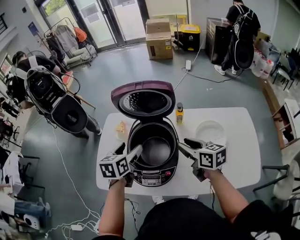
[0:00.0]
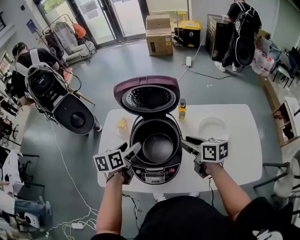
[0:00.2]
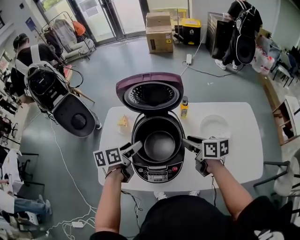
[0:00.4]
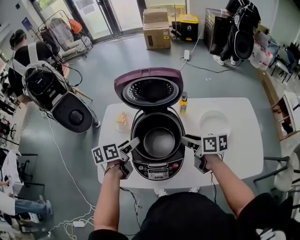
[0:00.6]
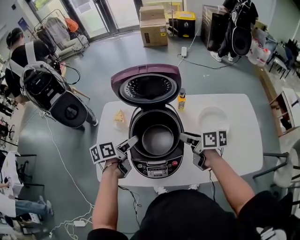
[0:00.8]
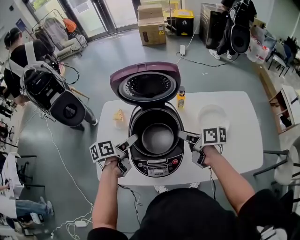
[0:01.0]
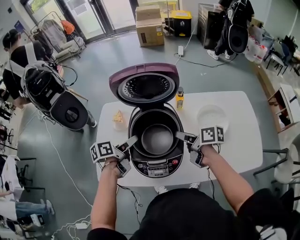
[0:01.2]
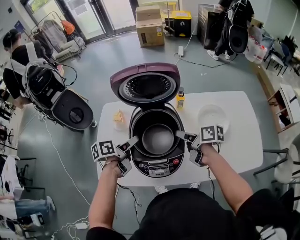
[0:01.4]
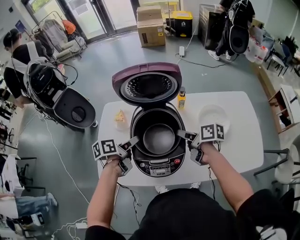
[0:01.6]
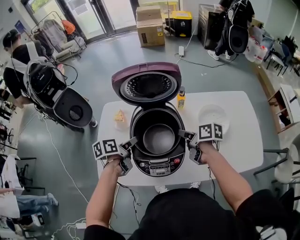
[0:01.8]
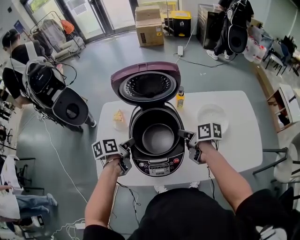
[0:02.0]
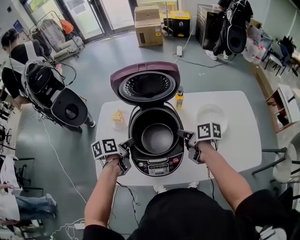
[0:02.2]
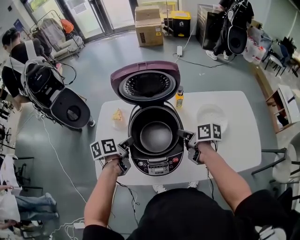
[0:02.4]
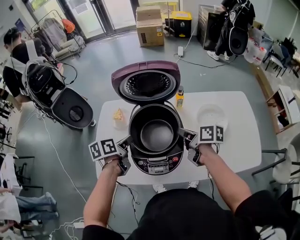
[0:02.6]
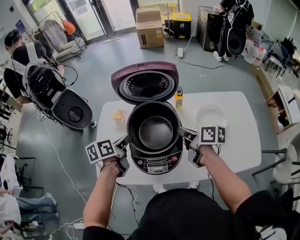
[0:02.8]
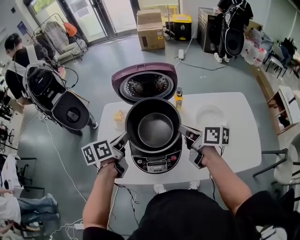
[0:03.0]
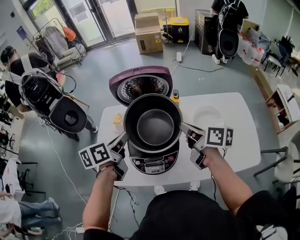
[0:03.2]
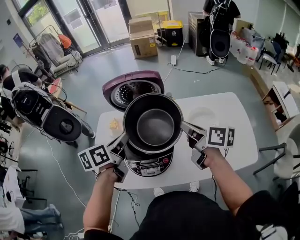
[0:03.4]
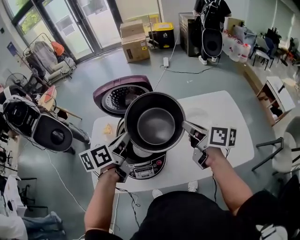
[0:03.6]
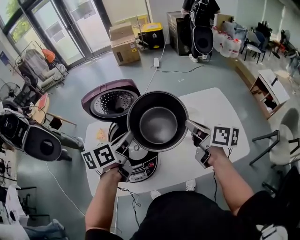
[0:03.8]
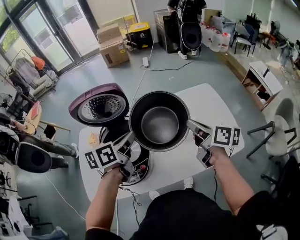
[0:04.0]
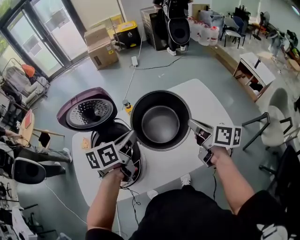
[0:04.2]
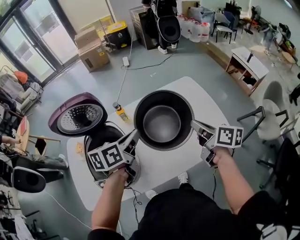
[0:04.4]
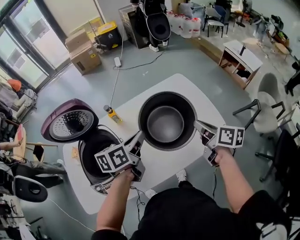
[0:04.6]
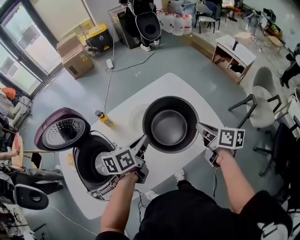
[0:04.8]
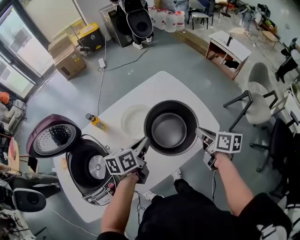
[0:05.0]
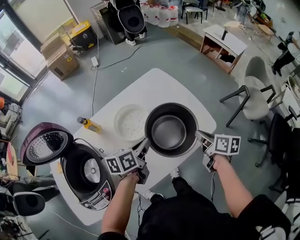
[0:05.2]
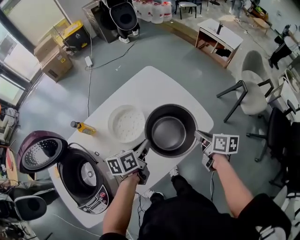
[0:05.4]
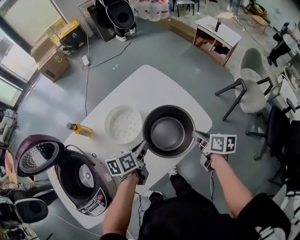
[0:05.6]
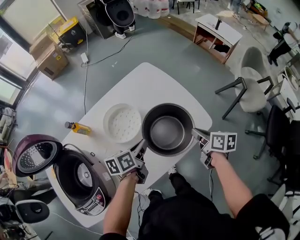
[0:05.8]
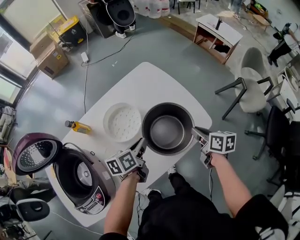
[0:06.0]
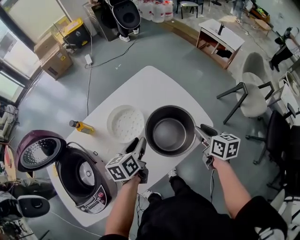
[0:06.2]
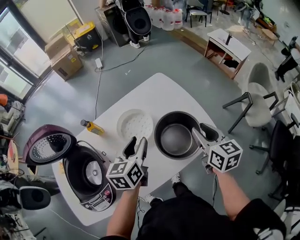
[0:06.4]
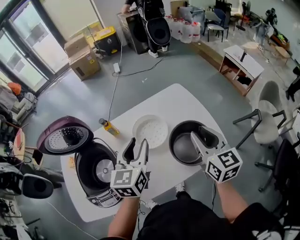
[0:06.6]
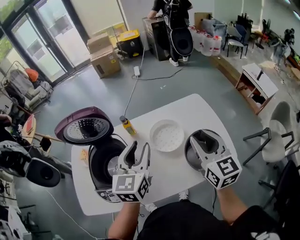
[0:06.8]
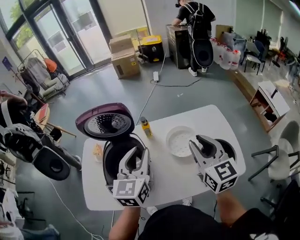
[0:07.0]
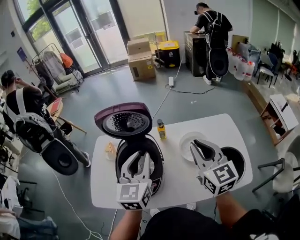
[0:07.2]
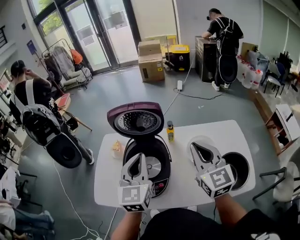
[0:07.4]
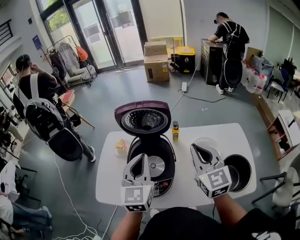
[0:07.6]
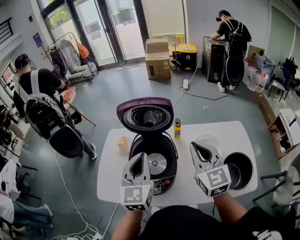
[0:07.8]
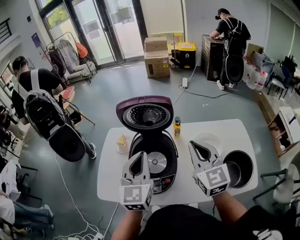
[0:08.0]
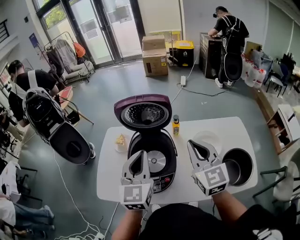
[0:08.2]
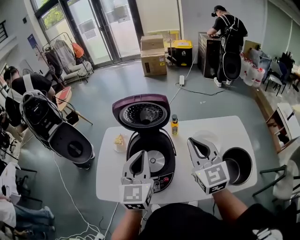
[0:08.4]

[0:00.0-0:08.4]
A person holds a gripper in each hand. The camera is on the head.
0:00.0 to 0:01.4: The two grippers go about 10 cm downward. The right gripper rotates approximately 30 degrees. Meanwhile the left gripper turns by about 40 degrees.
0:01.4 to 0:02.8: The left gripper closes.
0:02.8 to 0:04.2: The grippers both shift to the right by approximately 25 cm. The left gripper turns by about 30 degrees. The right gripper swivels some 30 degrees.
0:04.2 to 0:05.6: The grippers both shift to the right and downward by about 30 cm. The left gripper changes its angle by roughly 20 degrees. Meanwhile the right gripper swivels roughly 30 degrees.
0:05.6 to 0:07.0: Both grippers travel together upward, about 25 cm. The right gripper rotates around the line of its fingers by roughly 60 degrees, counterclockwise from behind, while the left gripper changes its angle by some 60 degrees.
0:07.0 to 0:08.4: Both grippers move to the left, roughly 15 cm.

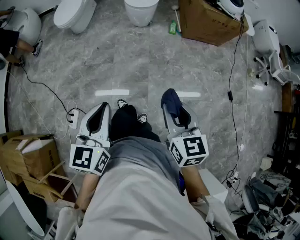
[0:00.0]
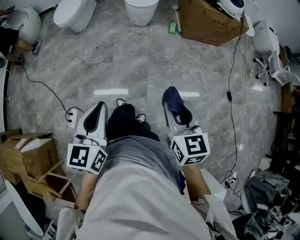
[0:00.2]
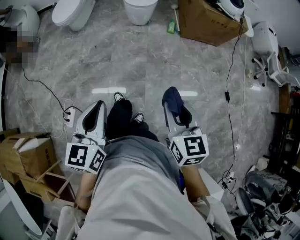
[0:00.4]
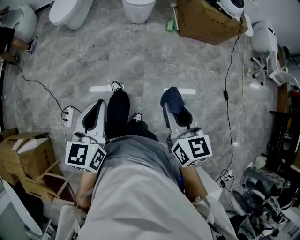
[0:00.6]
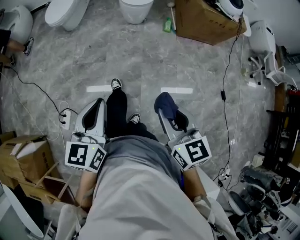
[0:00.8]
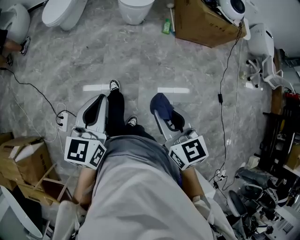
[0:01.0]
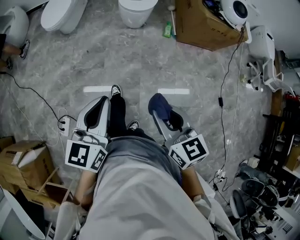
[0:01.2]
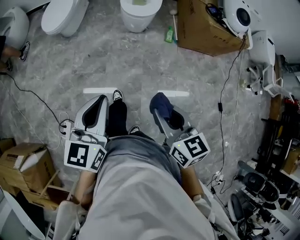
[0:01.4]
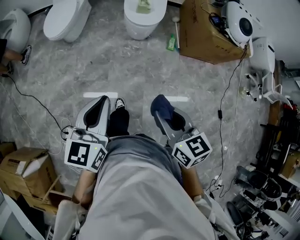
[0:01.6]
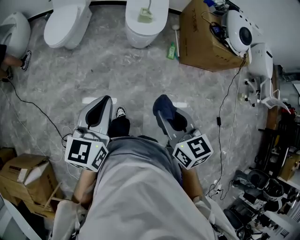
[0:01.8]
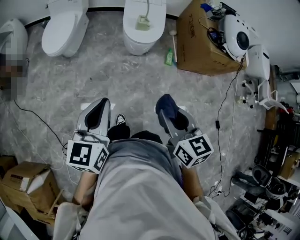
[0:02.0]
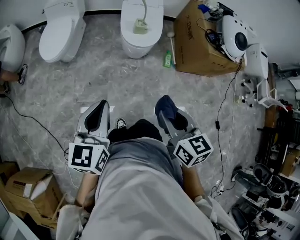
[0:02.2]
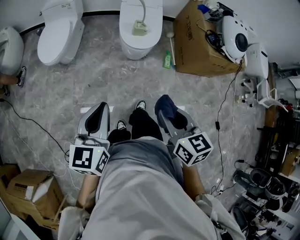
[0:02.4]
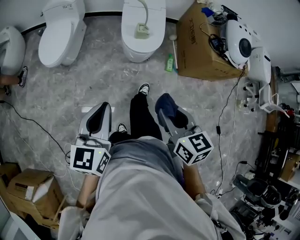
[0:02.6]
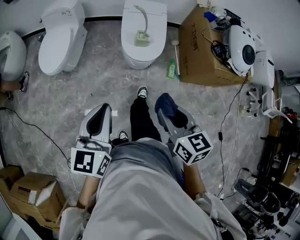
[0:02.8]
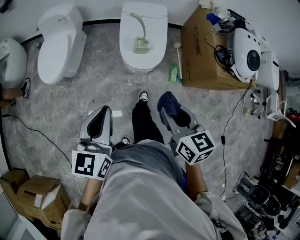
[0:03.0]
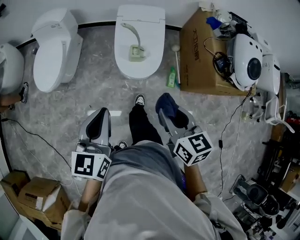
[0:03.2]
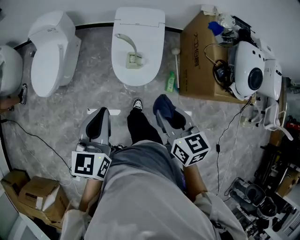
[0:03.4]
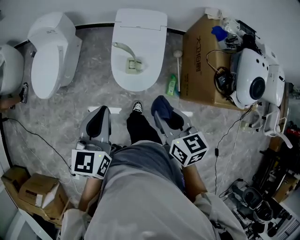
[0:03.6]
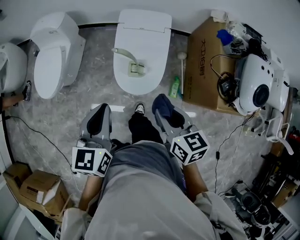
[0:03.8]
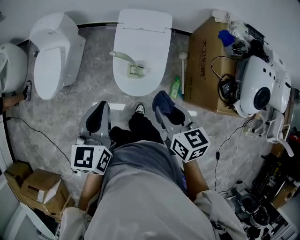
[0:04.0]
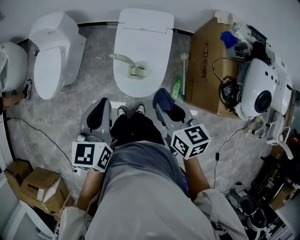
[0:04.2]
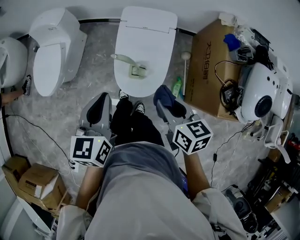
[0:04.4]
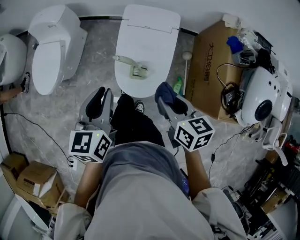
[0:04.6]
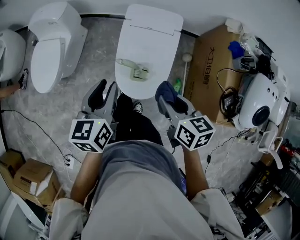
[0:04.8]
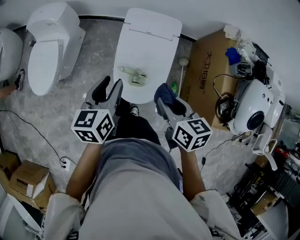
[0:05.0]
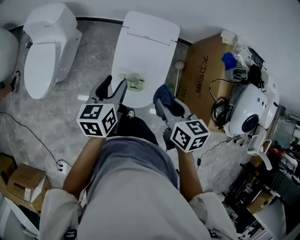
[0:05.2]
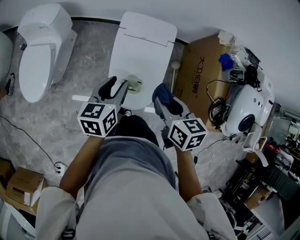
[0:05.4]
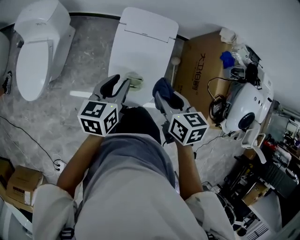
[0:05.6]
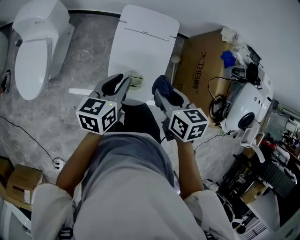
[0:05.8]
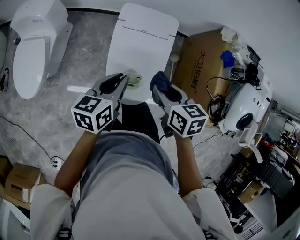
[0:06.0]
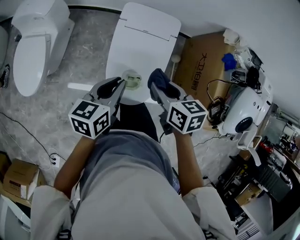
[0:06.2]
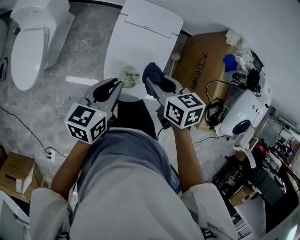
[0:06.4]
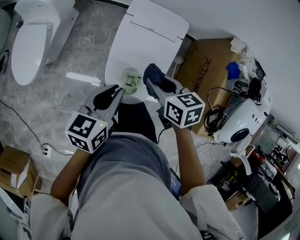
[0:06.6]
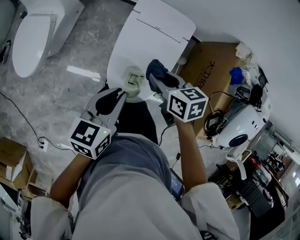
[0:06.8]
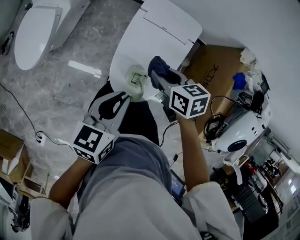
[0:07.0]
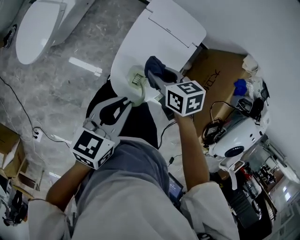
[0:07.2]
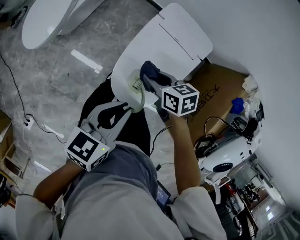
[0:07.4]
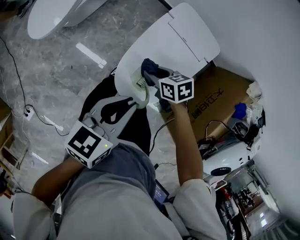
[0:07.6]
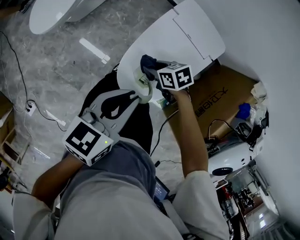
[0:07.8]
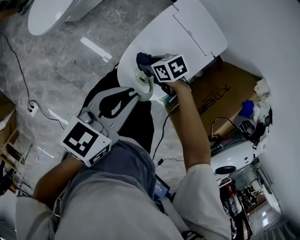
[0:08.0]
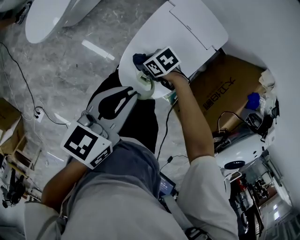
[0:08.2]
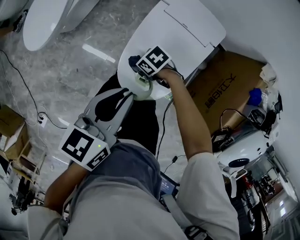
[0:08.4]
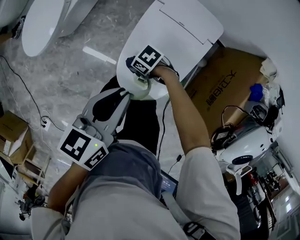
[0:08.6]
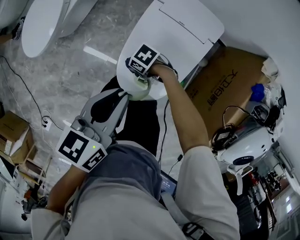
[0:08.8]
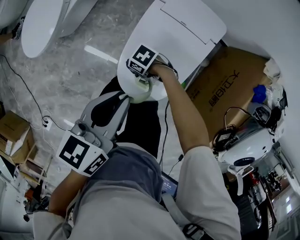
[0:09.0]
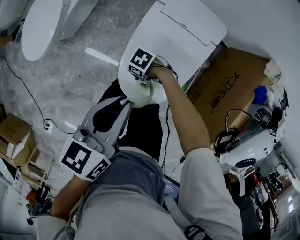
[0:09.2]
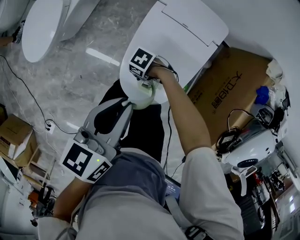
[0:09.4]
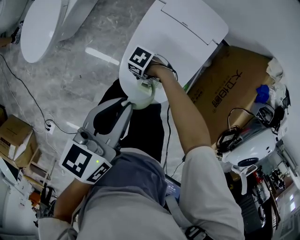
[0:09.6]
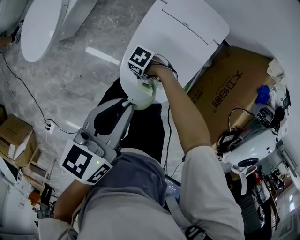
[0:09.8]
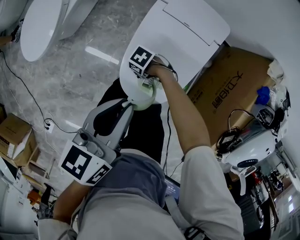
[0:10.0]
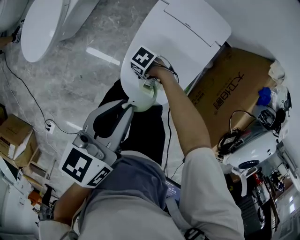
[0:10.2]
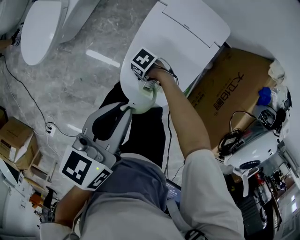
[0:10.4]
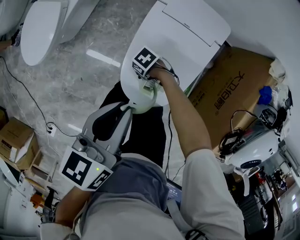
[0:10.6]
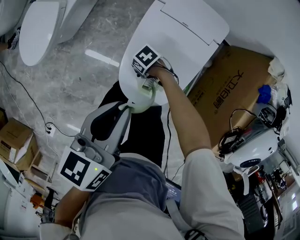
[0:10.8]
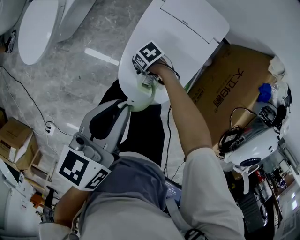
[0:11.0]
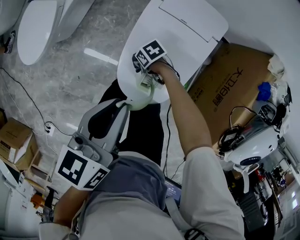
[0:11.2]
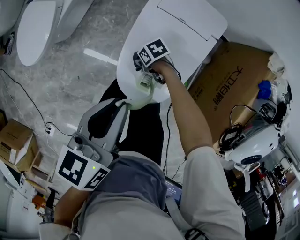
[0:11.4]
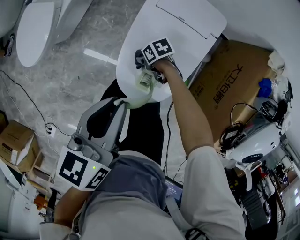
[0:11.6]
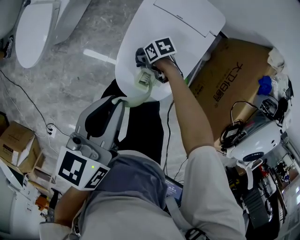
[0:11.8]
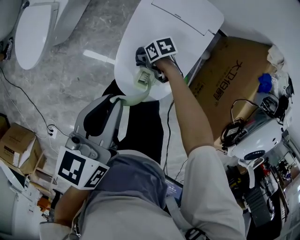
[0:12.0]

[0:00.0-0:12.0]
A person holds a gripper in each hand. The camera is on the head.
0:00.0 to 0:01.6: The left gripper ends up roughly 35 cm from where it was.
0:01.6 to 0:03.0: The left gripper shifts by about 35 cm.
0:03.0 to 0:04.4: The left gripper changes place by about 35 cm.
0:04.4 to 0:06.0: The left gripper changes place by some 20 cm, and rotates roughly 30 degrees.
0:06.0 to 0:07.6: The left gripper ends up some 5 cm from where it was.

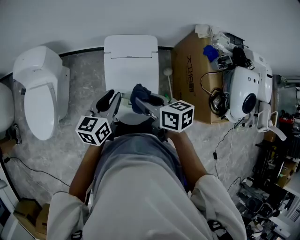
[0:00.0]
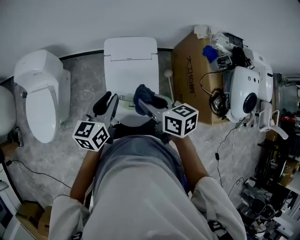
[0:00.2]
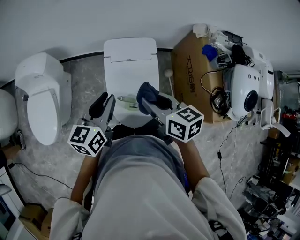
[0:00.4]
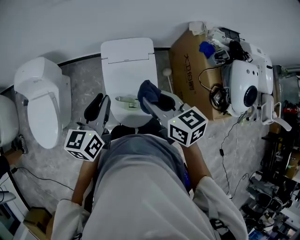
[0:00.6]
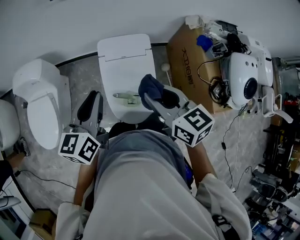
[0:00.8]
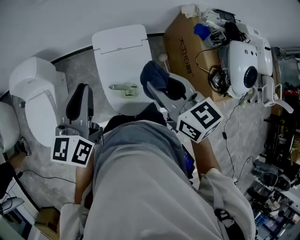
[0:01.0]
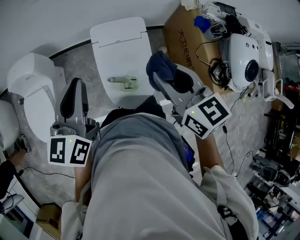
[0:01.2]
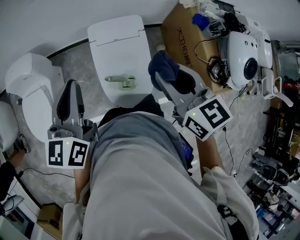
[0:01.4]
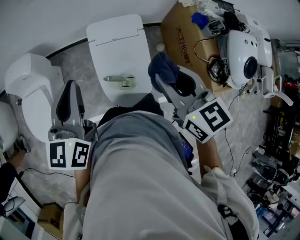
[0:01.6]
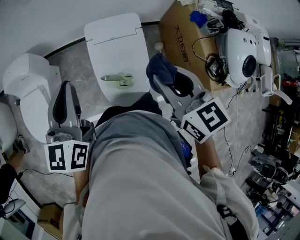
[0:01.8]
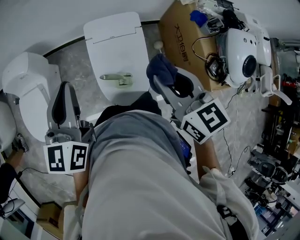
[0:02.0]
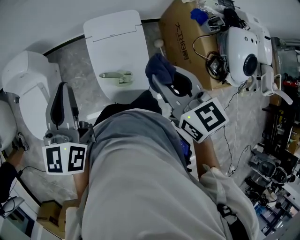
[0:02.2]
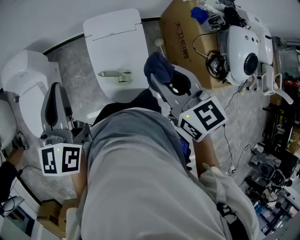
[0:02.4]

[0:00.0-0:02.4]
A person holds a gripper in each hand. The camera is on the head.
0:00.0 to 0:01.2: The left gripper goes about 15 cm upward.

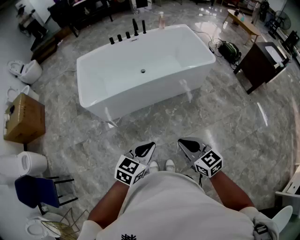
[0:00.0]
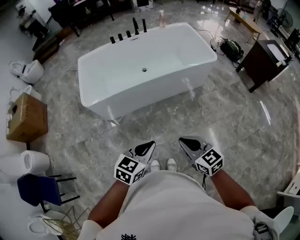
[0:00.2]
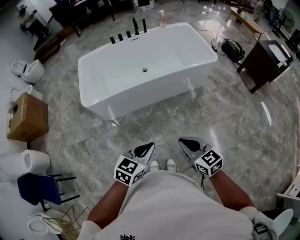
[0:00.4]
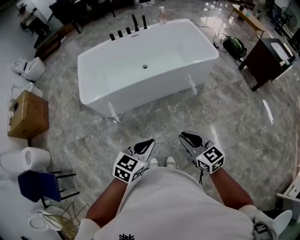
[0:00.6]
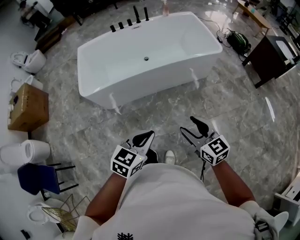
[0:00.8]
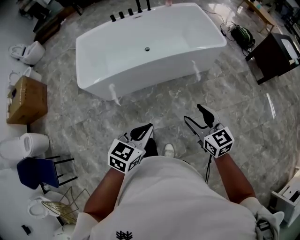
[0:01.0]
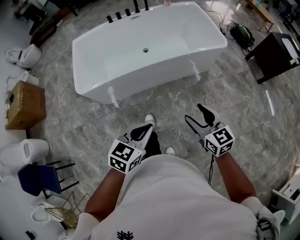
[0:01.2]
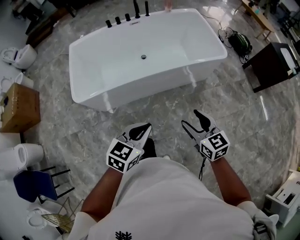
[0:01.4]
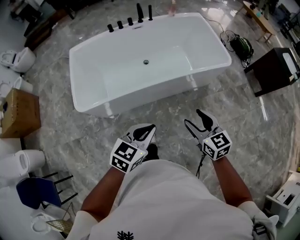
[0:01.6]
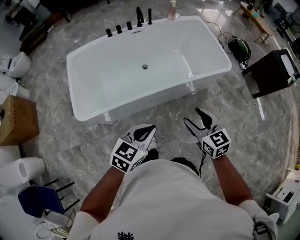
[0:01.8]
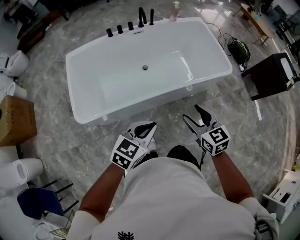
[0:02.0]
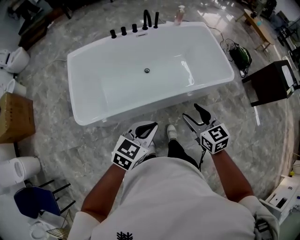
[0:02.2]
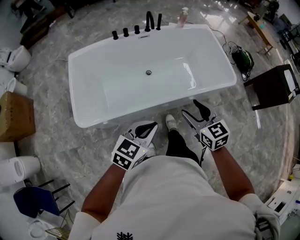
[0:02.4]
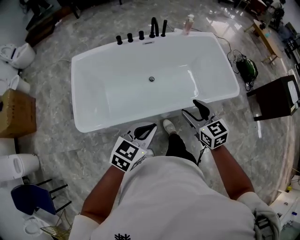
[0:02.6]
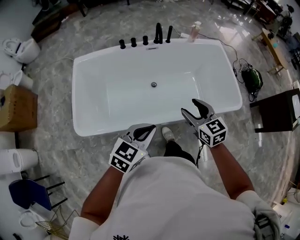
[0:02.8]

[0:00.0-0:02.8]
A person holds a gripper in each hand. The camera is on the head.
0:00.0 to 0:01.4: Both grippers travel together forward, about 20 cm. The right gripper opens up.
0:01.4 to 0:02.8: The two grippers go roughly 35 cm forward.
